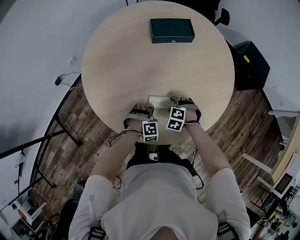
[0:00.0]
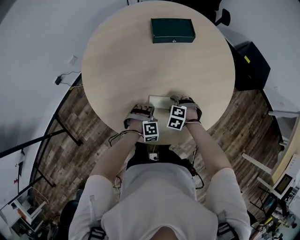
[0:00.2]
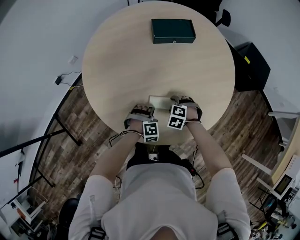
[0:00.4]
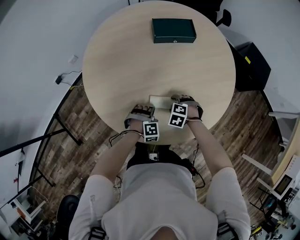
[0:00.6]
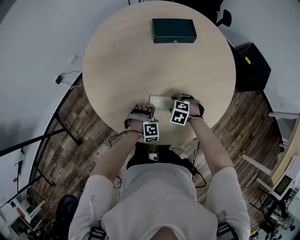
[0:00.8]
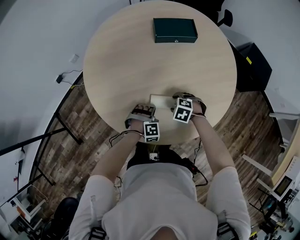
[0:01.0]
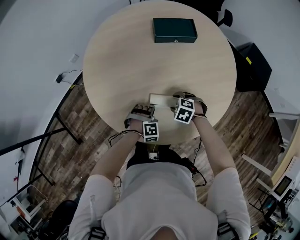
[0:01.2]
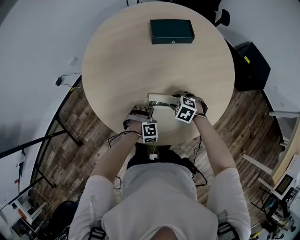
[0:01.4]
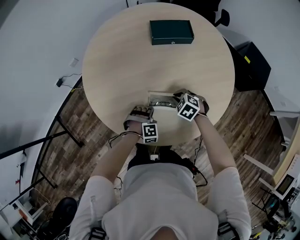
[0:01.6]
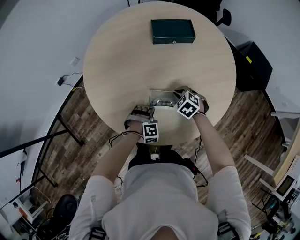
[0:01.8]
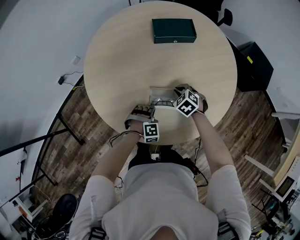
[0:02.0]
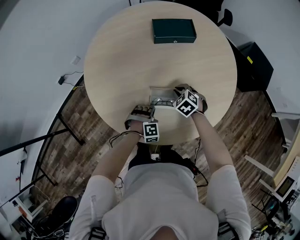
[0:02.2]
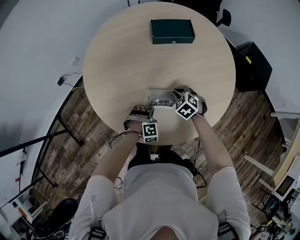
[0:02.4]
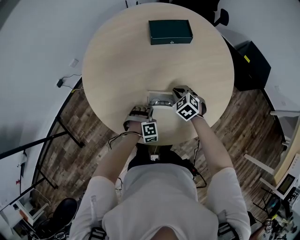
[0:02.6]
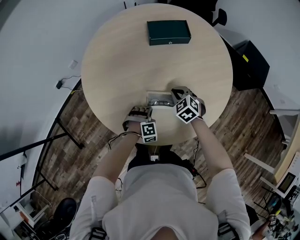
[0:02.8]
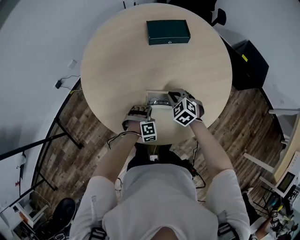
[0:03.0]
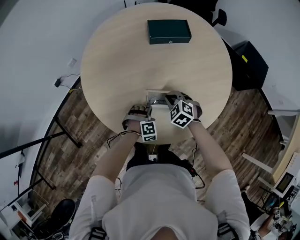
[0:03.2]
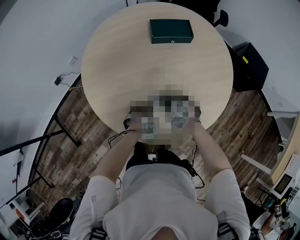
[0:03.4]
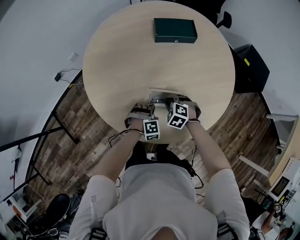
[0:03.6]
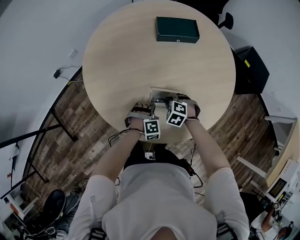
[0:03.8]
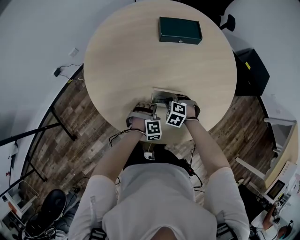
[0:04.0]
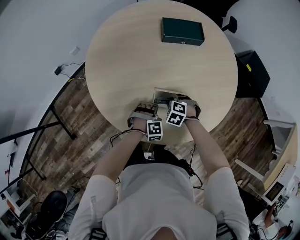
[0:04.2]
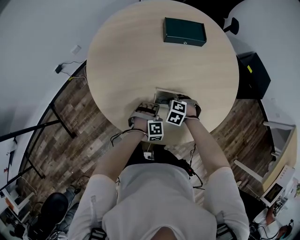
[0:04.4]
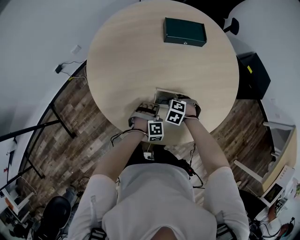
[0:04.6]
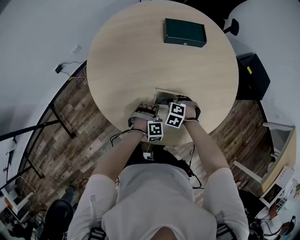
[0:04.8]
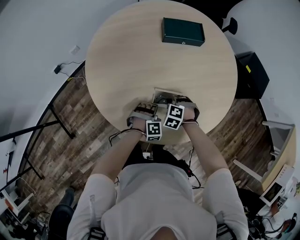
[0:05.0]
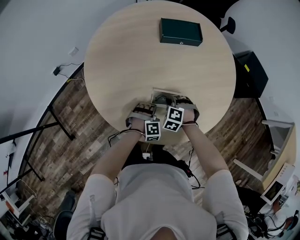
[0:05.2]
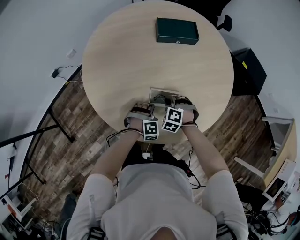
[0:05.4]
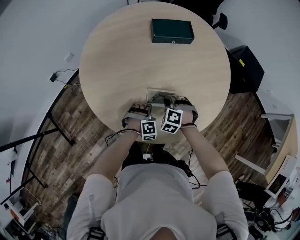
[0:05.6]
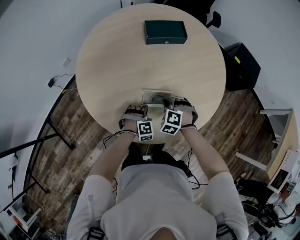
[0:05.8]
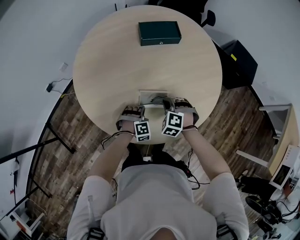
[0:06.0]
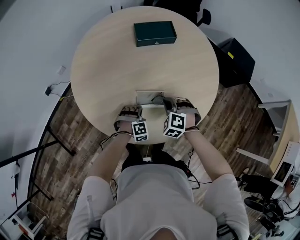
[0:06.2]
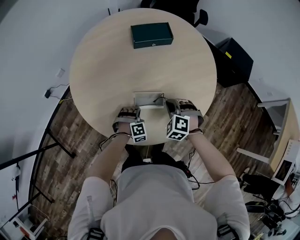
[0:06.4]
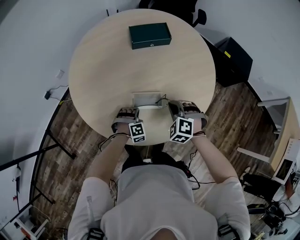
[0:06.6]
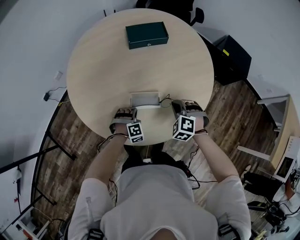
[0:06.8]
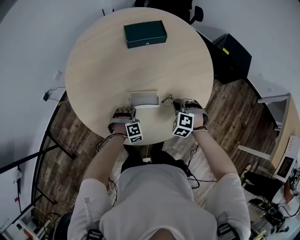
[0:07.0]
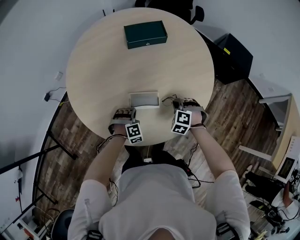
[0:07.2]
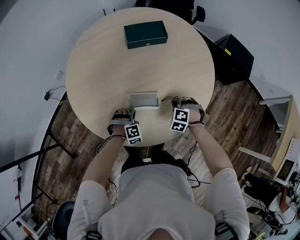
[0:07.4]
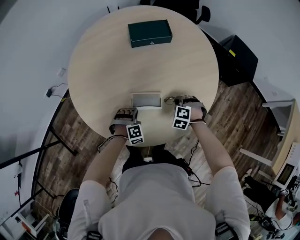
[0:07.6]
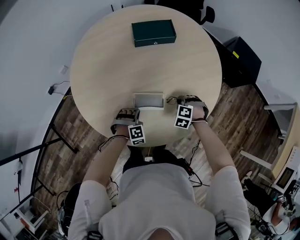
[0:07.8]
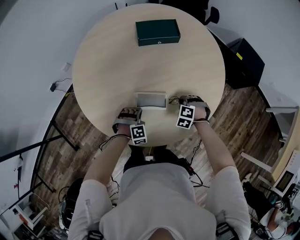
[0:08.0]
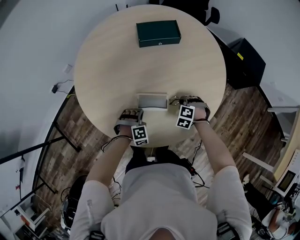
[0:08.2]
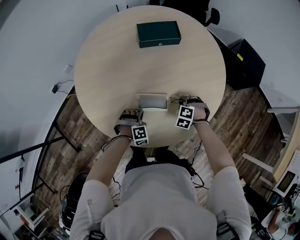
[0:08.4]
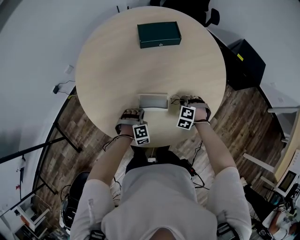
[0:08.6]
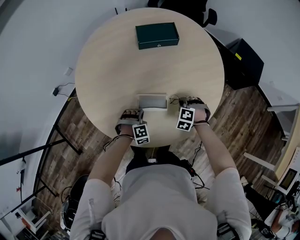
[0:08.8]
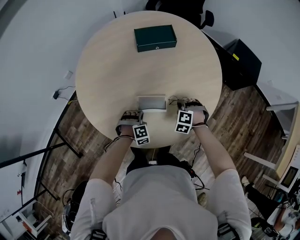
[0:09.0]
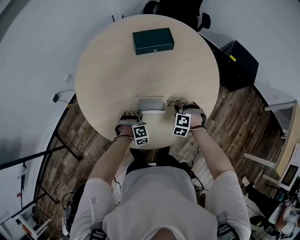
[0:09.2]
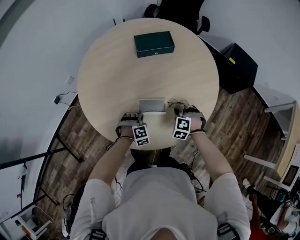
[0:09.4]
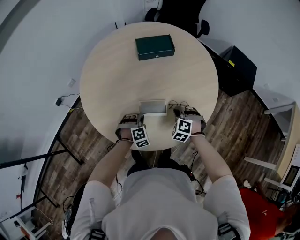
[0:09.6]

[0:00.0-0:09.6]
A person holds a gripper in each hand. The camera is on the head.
0:00.0 to 0:01.6: The right gripper changes place by approximately 5 cm, swivels some 20 degrees, and closes.
0:01.6 to 0:03.2: There are only small adjustments of the grippers.
0:03.2 to 0:04.8: The right gripper goes approximately 5 cm downward, and swivels some 30 degrees.
0:04.8 to 0:06.4: The right gripper is displaced upward by about 10 cm, and swivels roughly 20 degrees.
0:06.4 to 0:08.0: The right gripper travels downward and to the right by approximately 15 cm.
0:08.0 to 0:09.6: The right gripper shifts roughly 10 cm upward.

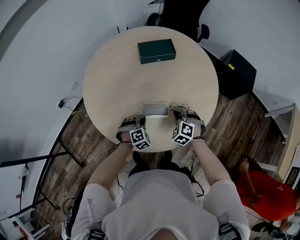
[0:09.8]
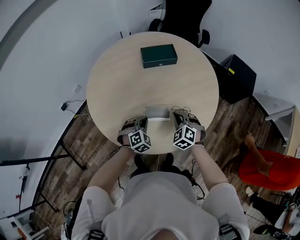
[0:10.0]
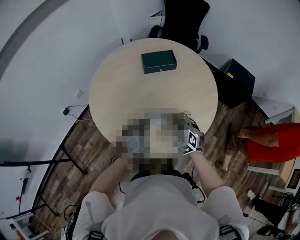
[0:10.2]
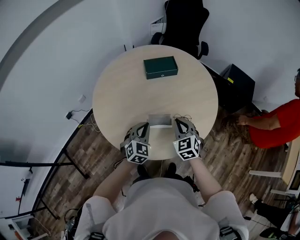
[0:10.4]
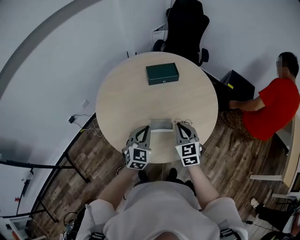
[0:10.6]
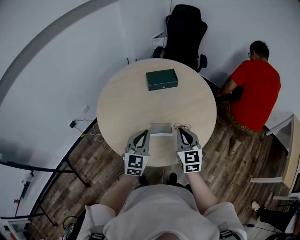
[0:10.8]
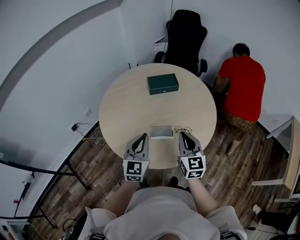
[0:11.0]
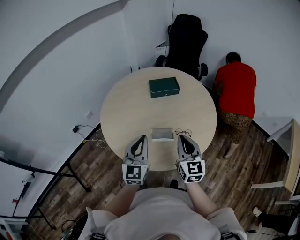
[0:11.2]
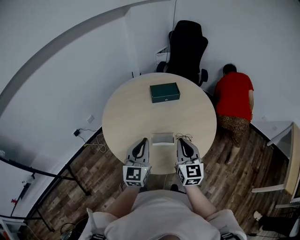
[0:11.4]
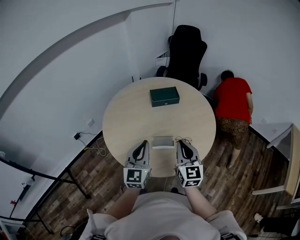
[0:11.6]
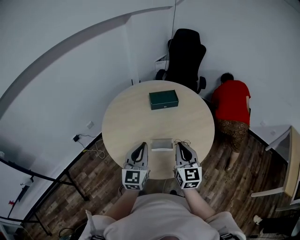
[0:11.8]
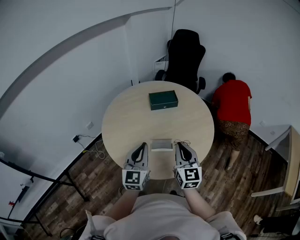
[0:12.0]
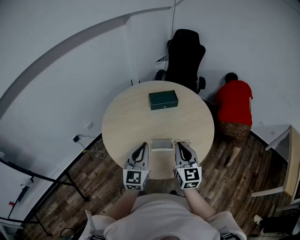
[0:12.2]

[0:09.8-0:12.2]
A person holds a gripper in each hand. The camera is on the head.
0:09.8 to 0:11.0: The two grippers go some 25 cm upward. The left gripper angles its fingers upward, by roughly 40 degrees; the right gripper angles its fingers upward, by some 40 degrees.
0:11.0 to 0:12.2: The right gripper moves approximately 5 cm.

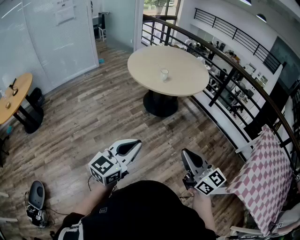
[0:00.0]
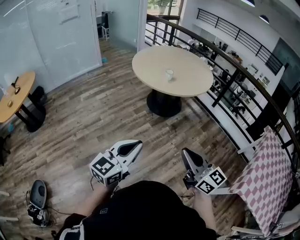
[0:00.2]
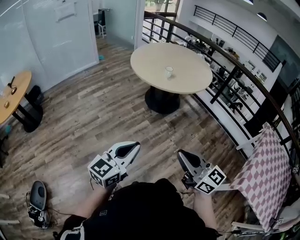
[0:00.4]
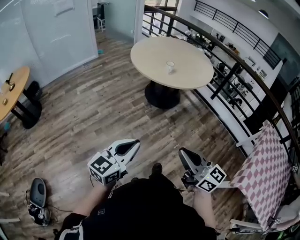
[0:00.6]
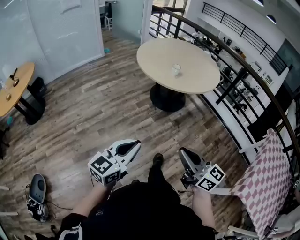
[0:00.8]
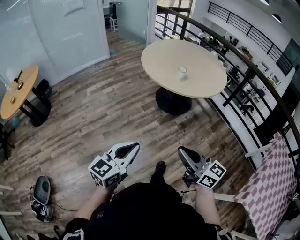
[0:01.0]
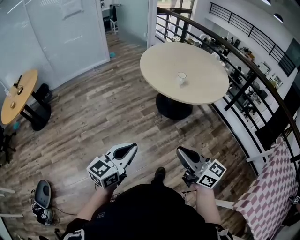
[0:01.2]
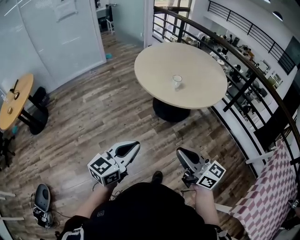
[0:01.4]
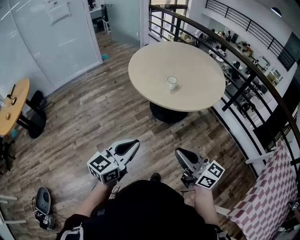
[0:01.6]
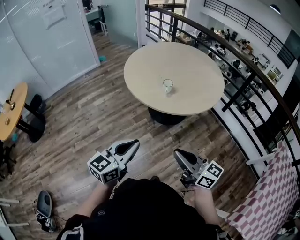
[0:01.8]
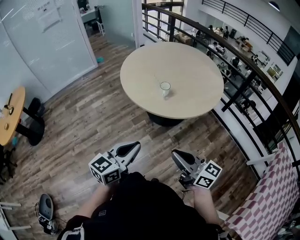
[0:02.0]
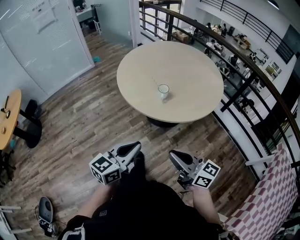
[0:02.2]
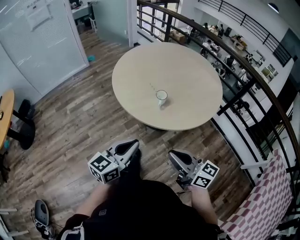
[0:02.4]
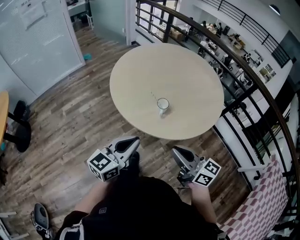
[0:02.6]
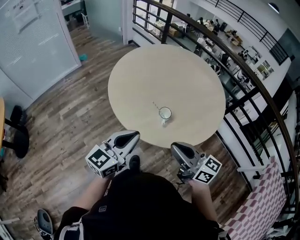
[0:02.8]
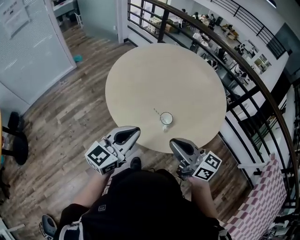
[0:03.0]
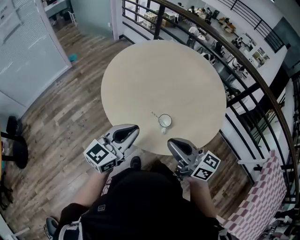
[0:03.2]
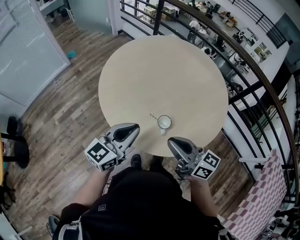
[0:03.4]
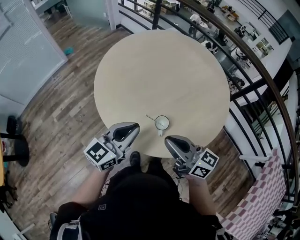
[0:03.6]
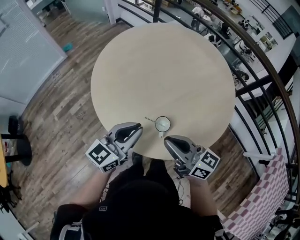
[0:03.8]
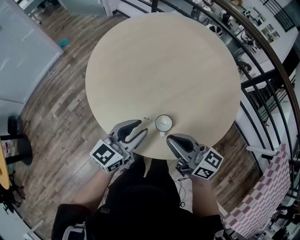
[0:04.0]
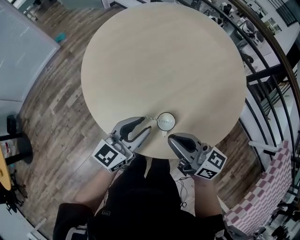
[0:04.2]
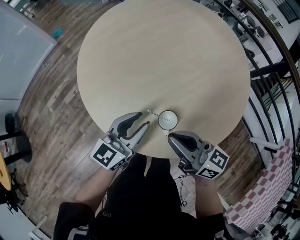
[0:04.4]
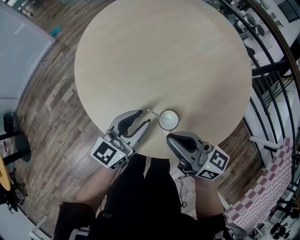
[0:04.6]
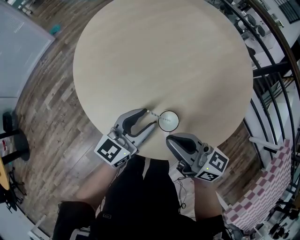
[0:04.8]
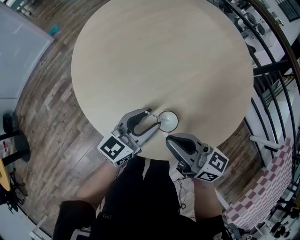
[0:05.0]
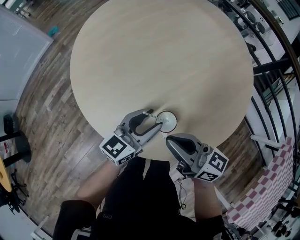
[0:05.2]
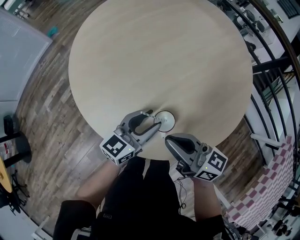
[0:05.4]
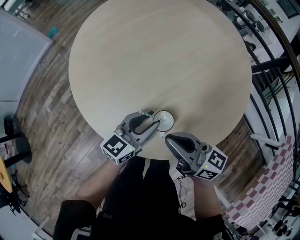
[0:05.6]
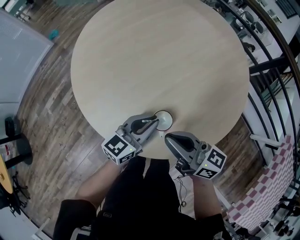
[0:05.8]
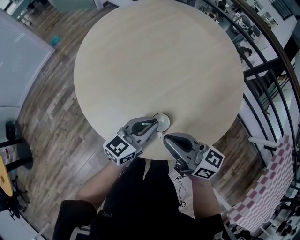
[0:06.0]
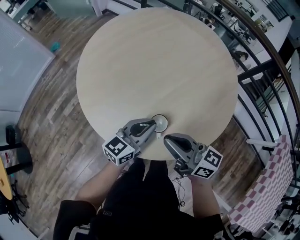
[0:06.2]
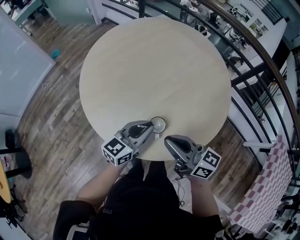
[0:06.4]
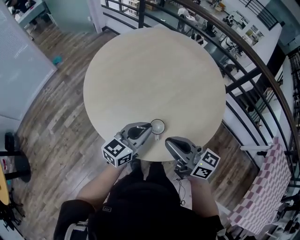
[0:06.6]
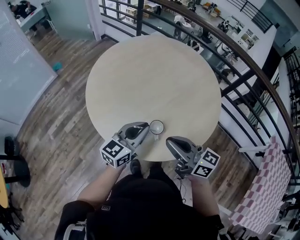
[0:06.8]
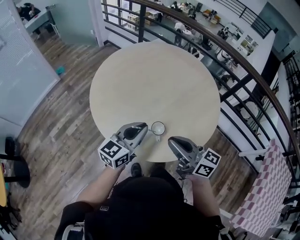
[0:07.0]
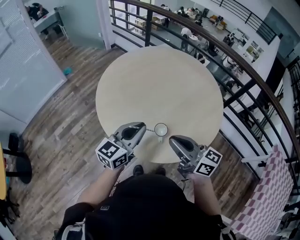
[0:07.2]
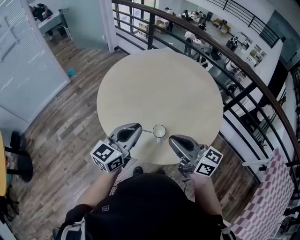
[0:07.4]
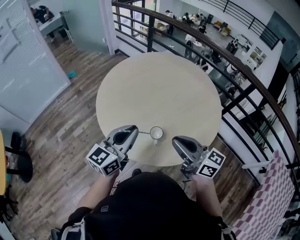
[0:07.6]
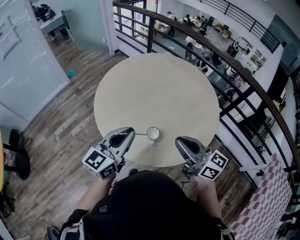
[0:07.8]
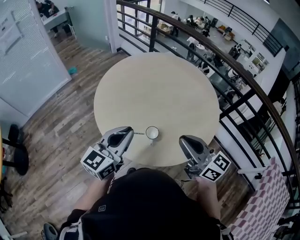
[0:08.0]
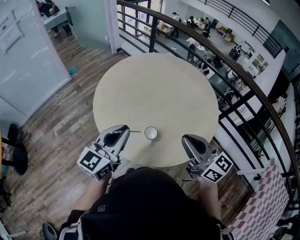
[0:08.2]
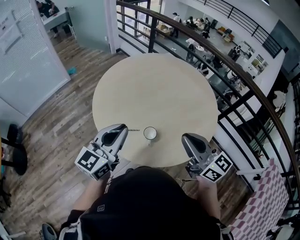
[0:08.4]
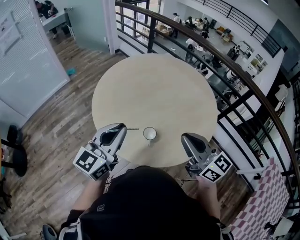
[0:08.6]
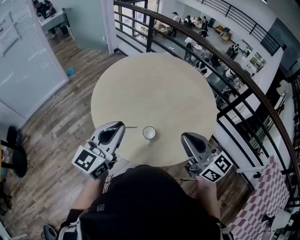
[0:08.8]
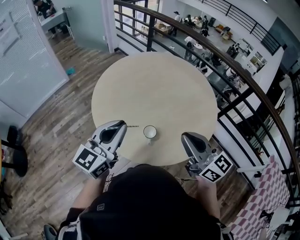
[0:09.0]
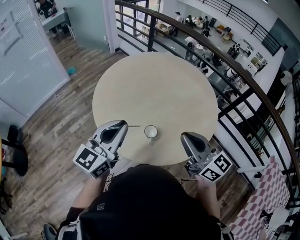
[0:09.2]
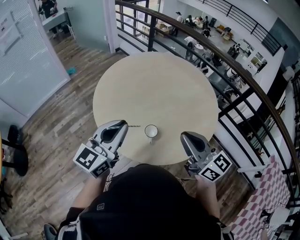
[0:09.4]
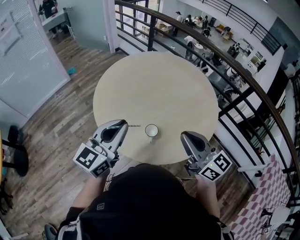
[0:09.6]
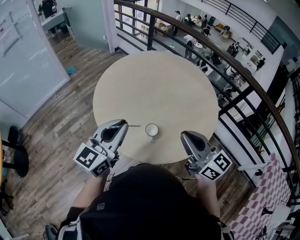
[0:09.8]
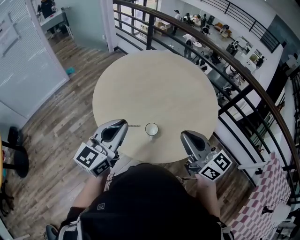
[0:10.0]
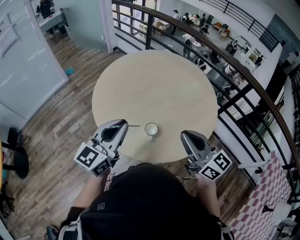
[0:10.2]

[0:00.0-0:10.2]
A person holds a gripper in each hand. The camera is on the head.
0:00.0 to 0:01.4: Both grippers travel together forward, approximately 20 cm.
0:01.4 to 0:03.0: The pair of grippers is taken forward, roughly 50 cm.
0:03.0 to 0:04.4: Both grippers move downward and forward, about 20 cm. The left gripper opens.
0:04.4 to 0:05.8: The left gripper moves to the right, some 5 cm.
0:05.8 to 0:07.2: The left gripper shifts approximately 20 cm upward, while the right gripper shifts approximately 20 cm upward and backward.
0:07.2 to 0:08.8: The left gripper heads upward, covering approximately 10 cm; the right gripper moves to the right and upward, some 10 cm.
0:08.8 to 0:10.2: The grippers make only small movements.

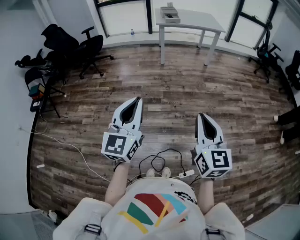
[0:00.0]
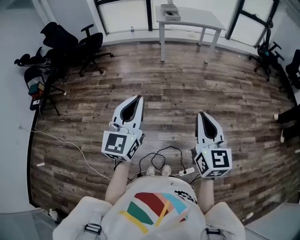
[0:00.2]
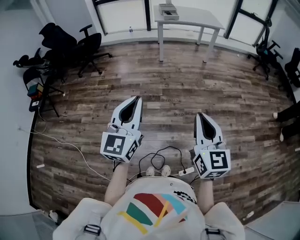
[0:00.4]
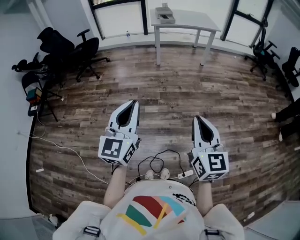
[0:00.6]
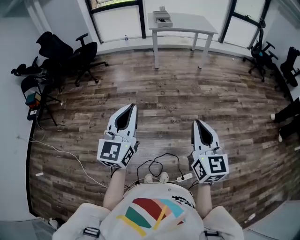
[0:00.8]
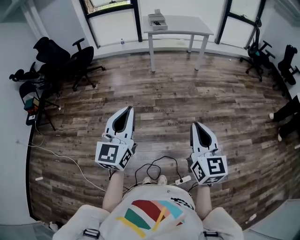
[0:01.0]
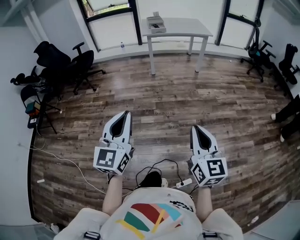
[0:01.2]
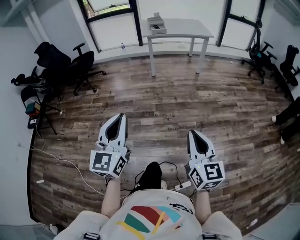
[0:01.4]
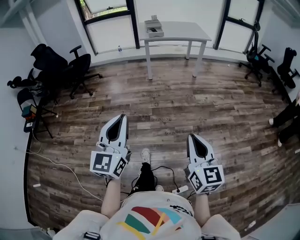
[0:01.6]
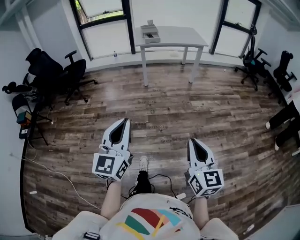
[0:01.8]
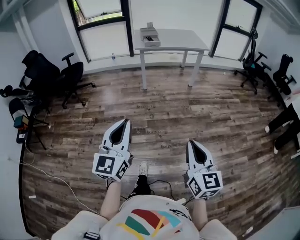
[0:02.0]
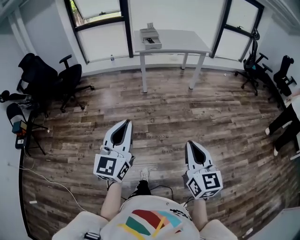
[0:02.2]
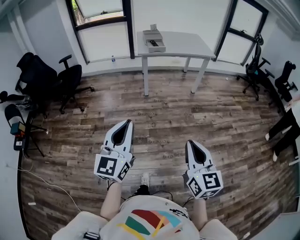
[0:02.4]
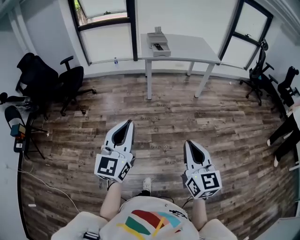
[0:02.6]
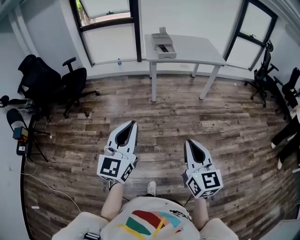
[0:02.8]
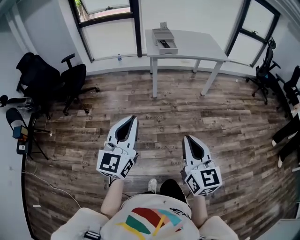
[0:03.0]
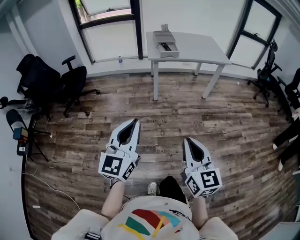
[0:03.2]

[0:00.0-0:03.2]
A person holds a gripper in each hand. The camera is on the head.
0:00.0 to 0:01.6: The left gripper moves forward, roughly 5 cm. Meanwhile the right gripper moves to the right, approximately 5 cm.
0:01.6 to 0:03.2: Both grippers move forward, approximately 40 cm.
